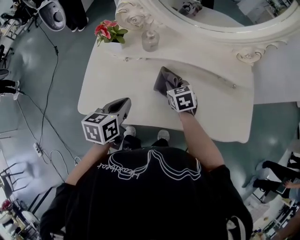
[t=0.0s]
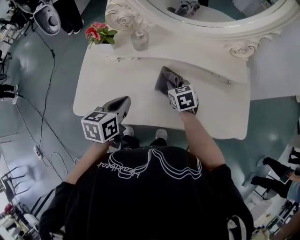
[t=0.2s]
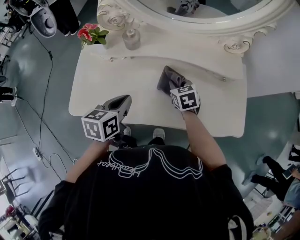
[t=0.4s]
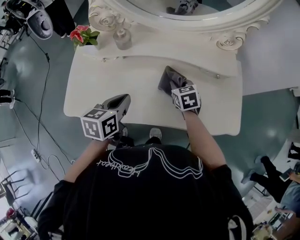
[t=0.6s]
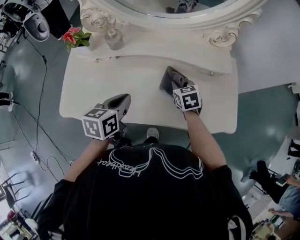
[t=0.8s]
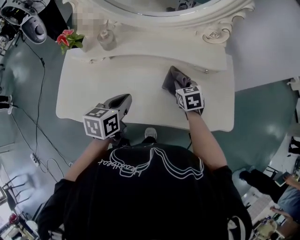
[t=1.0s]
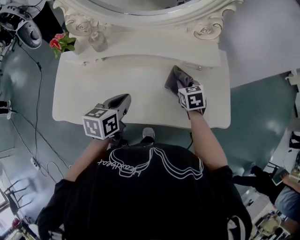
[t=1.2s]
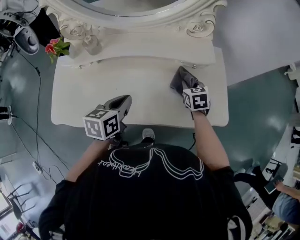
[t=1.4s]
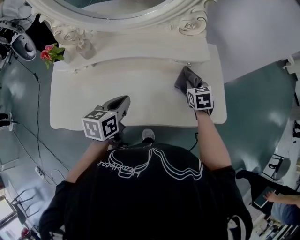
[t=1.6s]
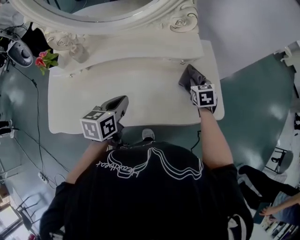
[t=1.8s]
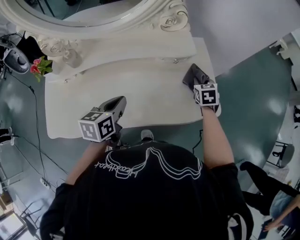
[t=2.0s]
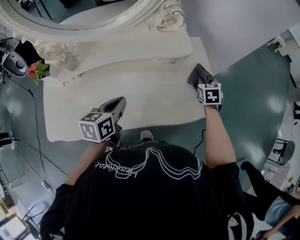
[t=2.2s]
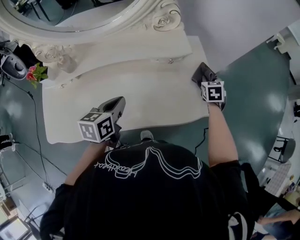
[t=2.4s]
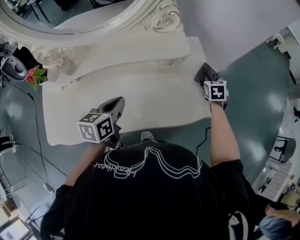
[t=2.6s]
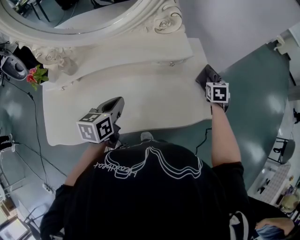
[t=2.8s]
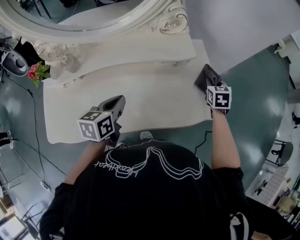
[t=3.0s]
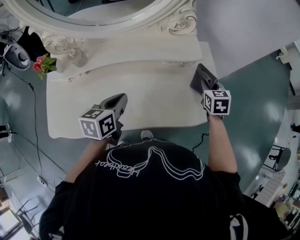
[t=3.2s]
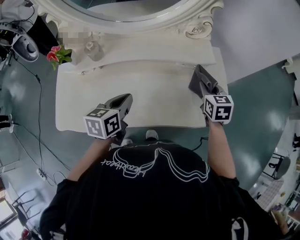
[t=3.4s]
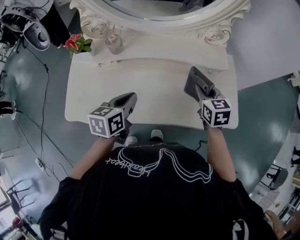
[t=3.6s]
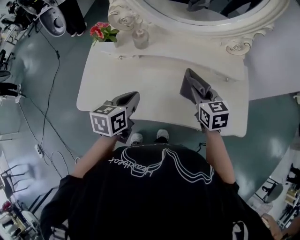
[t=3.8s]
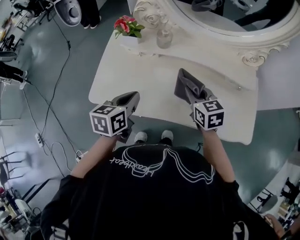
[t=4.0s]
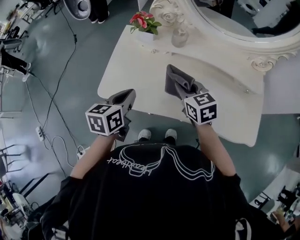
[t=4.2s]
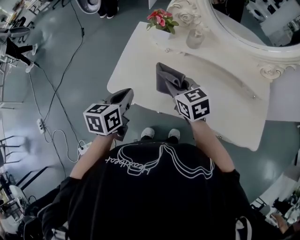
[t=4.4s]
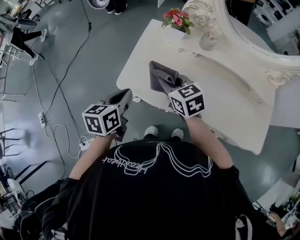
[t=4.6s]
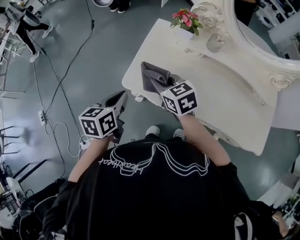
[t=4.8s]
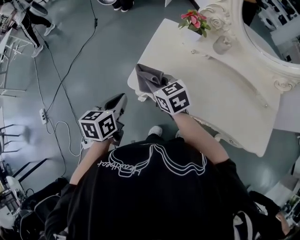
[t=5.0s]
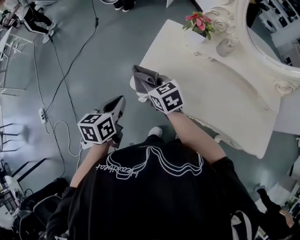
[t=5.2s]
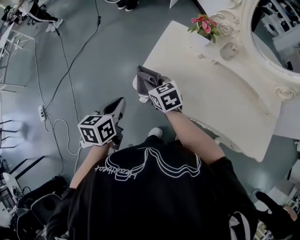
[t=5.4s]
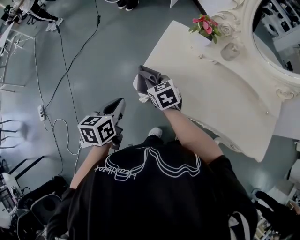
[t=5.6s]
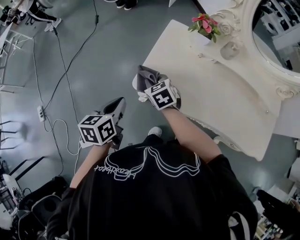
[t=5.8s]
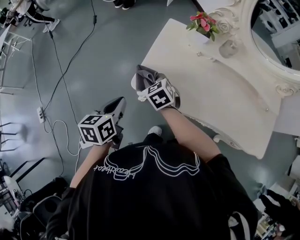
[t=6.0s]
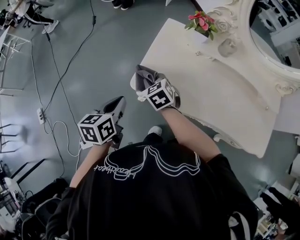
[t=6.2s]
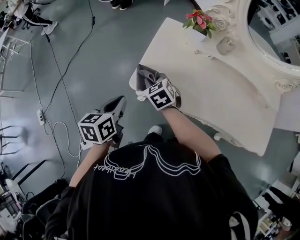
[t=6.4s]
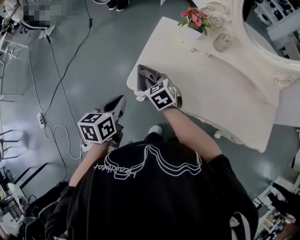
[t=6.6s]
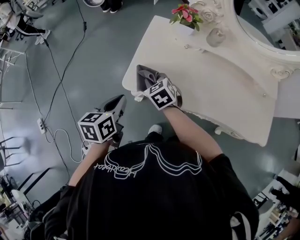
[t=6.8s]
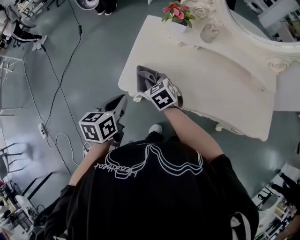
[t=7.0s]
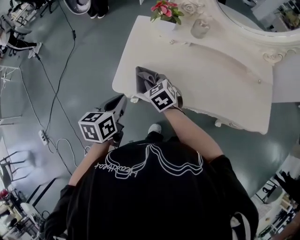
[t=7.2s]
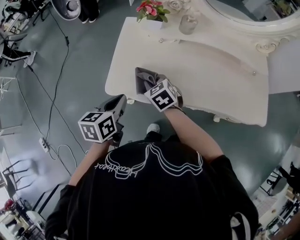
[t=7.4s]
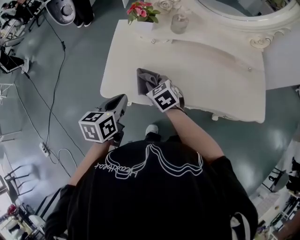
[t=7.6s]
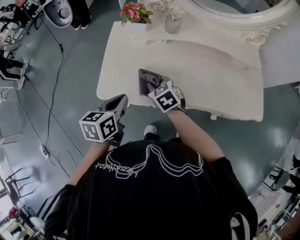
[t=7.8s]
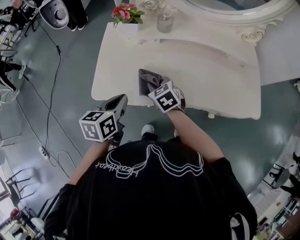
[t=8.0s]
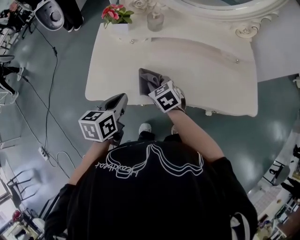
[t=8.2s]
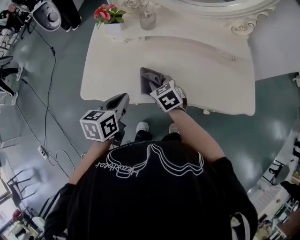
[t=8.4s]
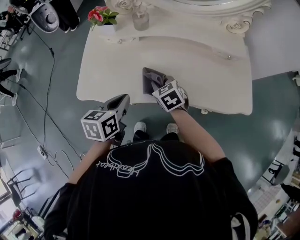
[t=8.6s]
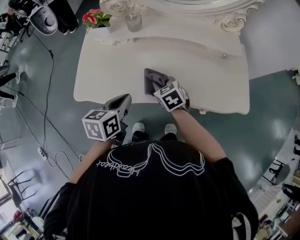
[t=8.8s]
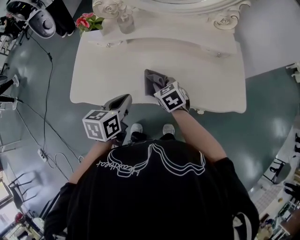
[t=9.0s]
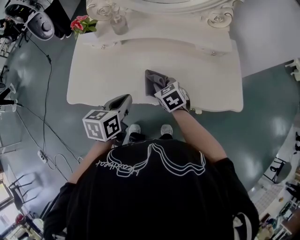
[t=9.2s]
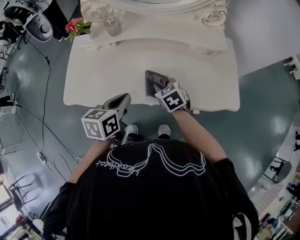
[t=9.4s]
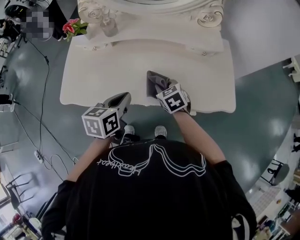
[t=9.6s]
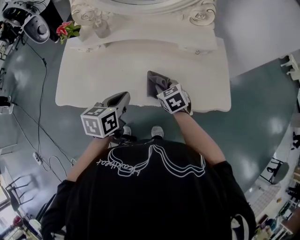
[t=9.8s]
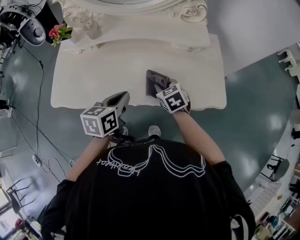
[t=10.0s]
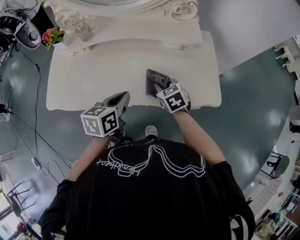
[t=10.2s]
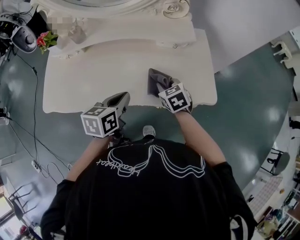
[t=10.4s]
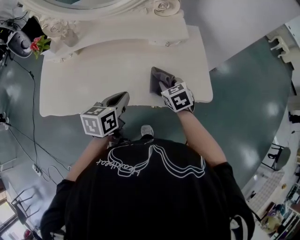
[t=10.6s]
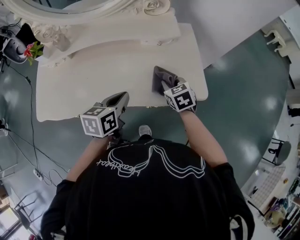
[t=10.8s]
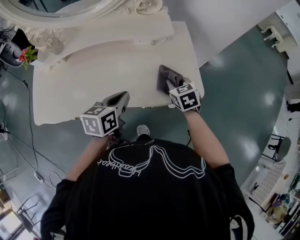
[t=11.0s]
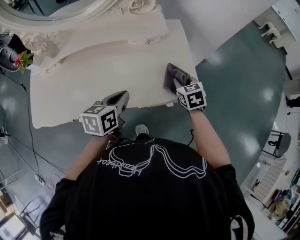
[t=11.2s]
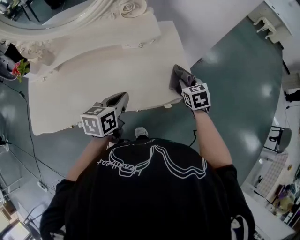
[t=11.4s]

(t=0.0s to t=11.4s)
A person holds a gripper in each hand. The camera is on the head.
t=0.0s - t=1.4s: The right gripper is displaced to the right by some 30 cm, while the left gripper heads to the right, covering about 20 cm.
t=1.4s - t=2.8s: The right gripper moves to the right, roughly 20 cm, and swivels approximately 20 degrees. Meanwhile the left gripper changes place by about 5 cm.
t=2.8s - t=4.2s: The left gripper changes place by some 35 cm, and changes its angle by about 30 degrees, while the right gripper changes place by roughly 60 cm, and turns by some 60 degrees.
t=4.2s - t=5.6s: Both grippers travel together to the left, about 25 cm.
t=5.6s - t=7.2s: Both grippers move to the right, about 10 cm.
t=7.2s - t=8.6s: The two grippers go approximately 20 cm to the right.
t=8.6s - t=10.0s: The grippers both shift to the right by about 20 cm.
t=10.0s - t=11.4s: The left gripper is displaced to the right by some 15 cm; the right gripper travels to the right by some 30 cm, and rotates some 30 degrees.

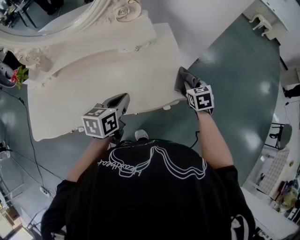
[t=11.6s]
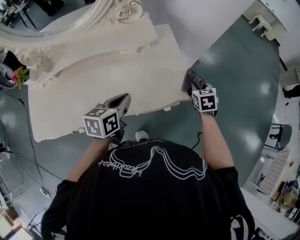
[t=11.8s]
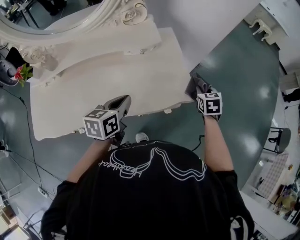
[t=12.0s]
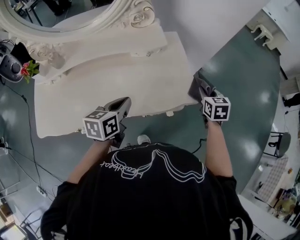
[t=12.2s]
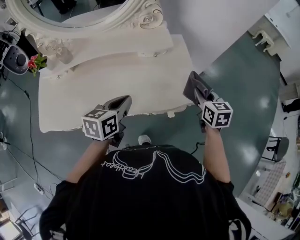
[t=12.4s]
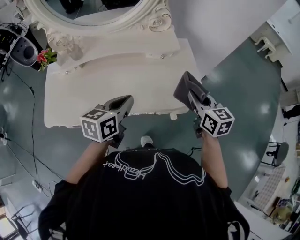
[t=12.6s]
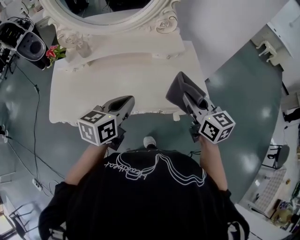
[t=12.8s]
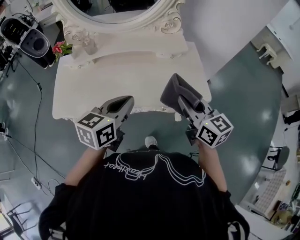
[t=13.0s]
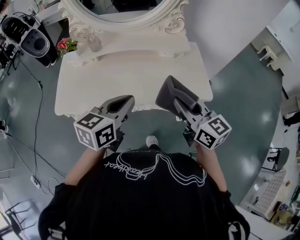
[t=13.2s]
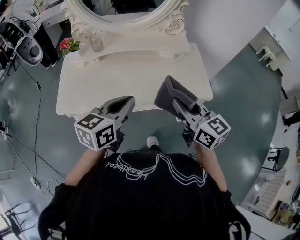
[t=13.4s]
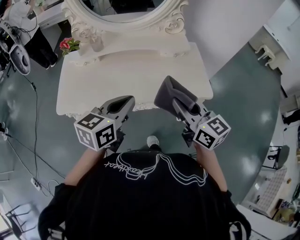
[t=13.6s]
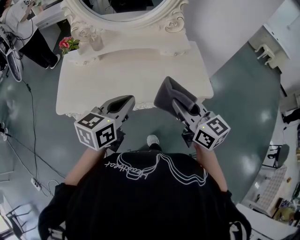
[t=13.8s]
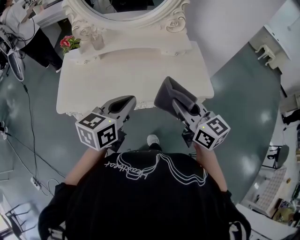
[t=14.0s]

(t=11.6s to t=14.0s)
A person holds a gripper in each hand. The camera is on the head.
t=11.6s - t=12.8s: The right gripper is displaced upward, to the left and backward by roughly 30 cm, and angles its fingers upward, by about 30 degrees. Meanwhile the left gripper travels upward, backward and to the left by about 20 cm.
t=12.8s - t=14.0s: The left gripper shifts some 10 cm backward and to the left, while the right gripper moves to the left and backward, roughly 15 cm.

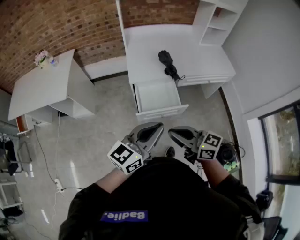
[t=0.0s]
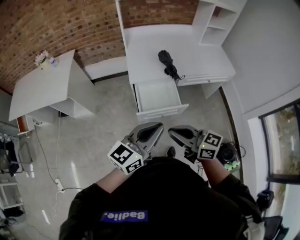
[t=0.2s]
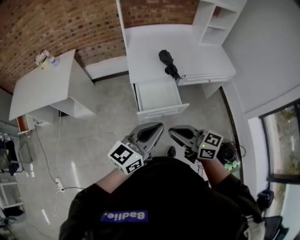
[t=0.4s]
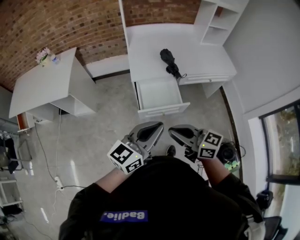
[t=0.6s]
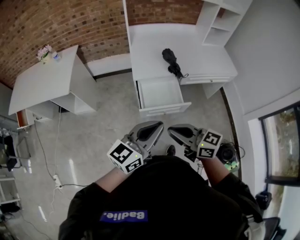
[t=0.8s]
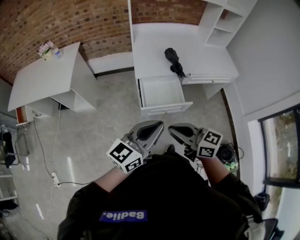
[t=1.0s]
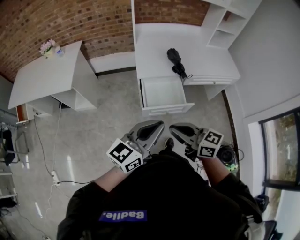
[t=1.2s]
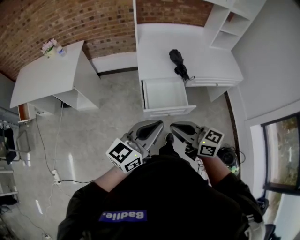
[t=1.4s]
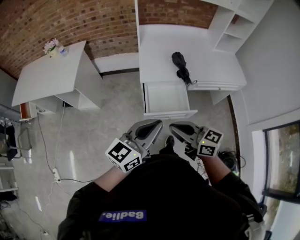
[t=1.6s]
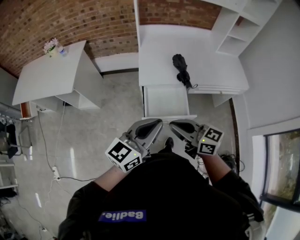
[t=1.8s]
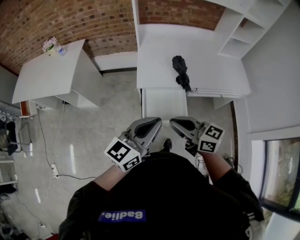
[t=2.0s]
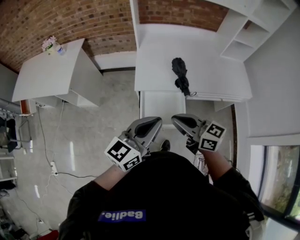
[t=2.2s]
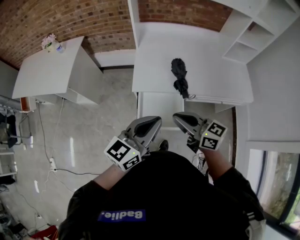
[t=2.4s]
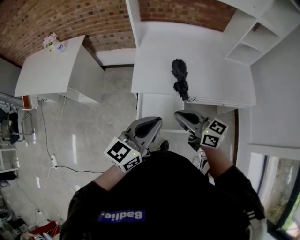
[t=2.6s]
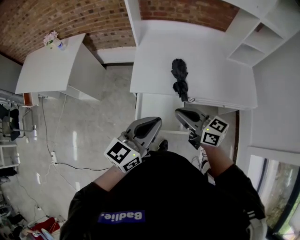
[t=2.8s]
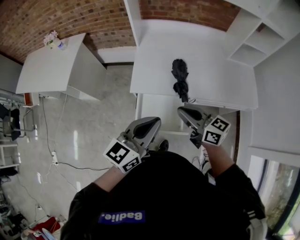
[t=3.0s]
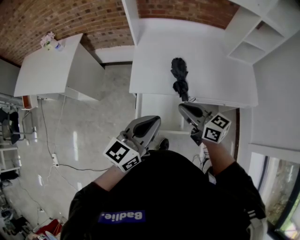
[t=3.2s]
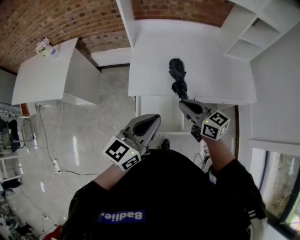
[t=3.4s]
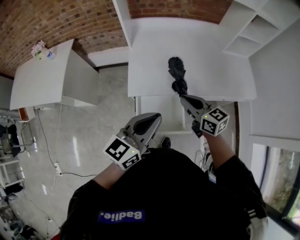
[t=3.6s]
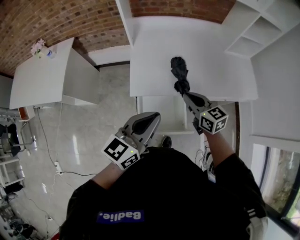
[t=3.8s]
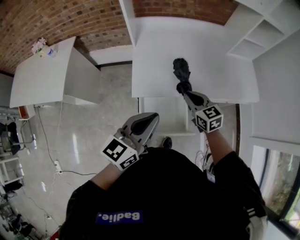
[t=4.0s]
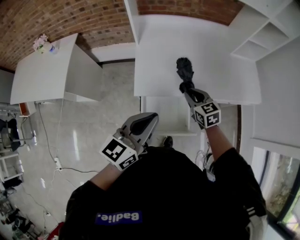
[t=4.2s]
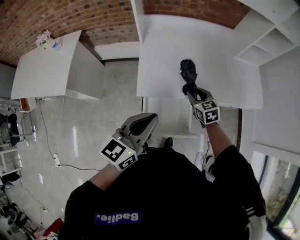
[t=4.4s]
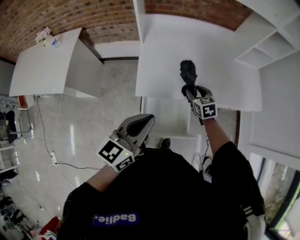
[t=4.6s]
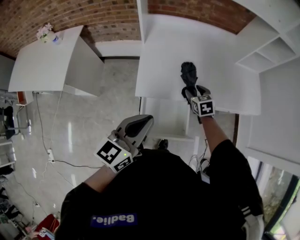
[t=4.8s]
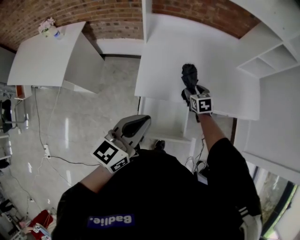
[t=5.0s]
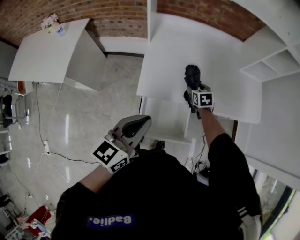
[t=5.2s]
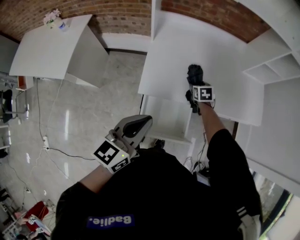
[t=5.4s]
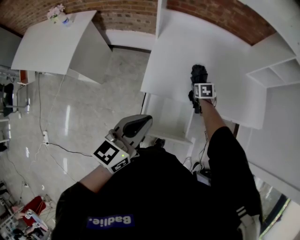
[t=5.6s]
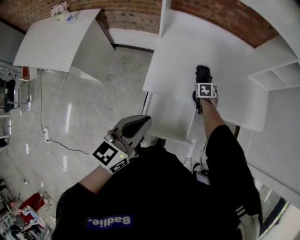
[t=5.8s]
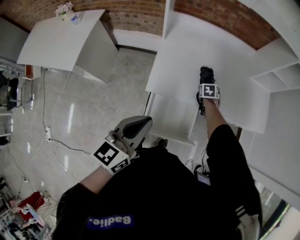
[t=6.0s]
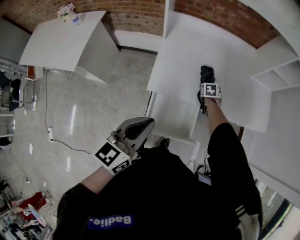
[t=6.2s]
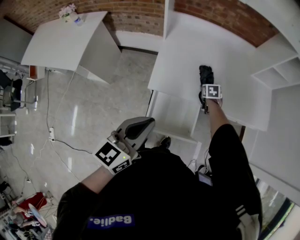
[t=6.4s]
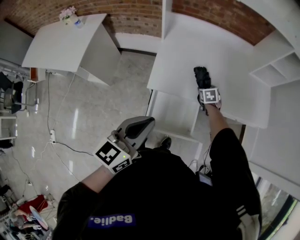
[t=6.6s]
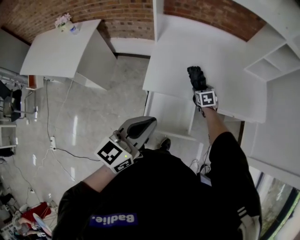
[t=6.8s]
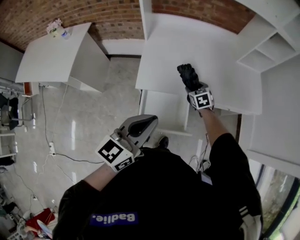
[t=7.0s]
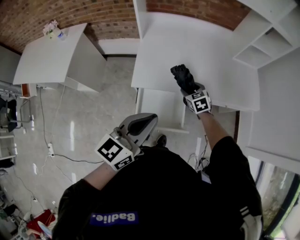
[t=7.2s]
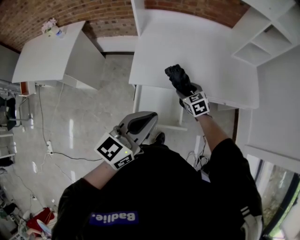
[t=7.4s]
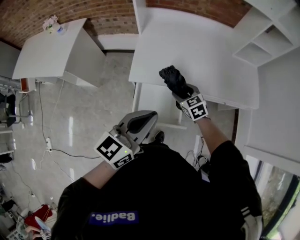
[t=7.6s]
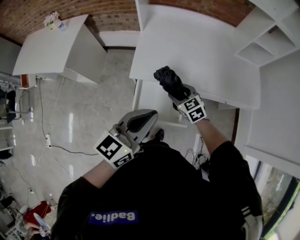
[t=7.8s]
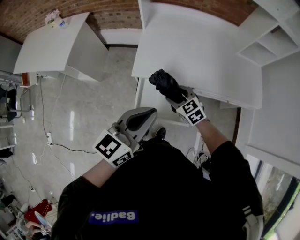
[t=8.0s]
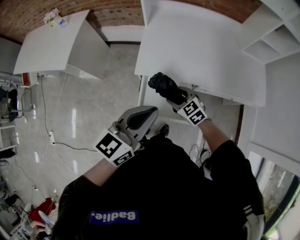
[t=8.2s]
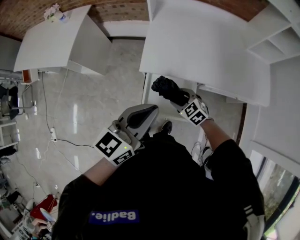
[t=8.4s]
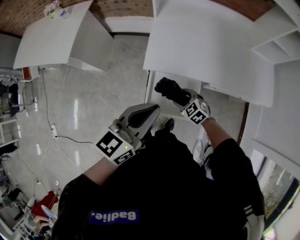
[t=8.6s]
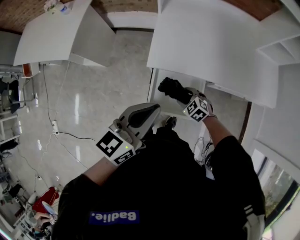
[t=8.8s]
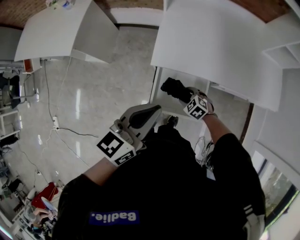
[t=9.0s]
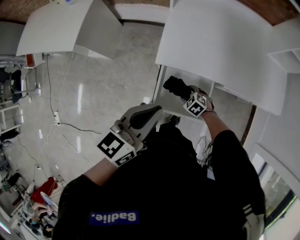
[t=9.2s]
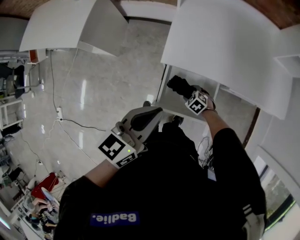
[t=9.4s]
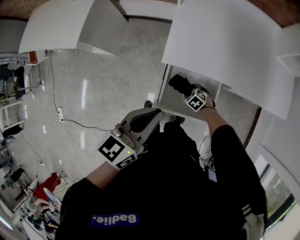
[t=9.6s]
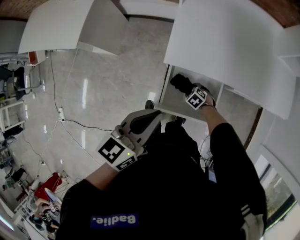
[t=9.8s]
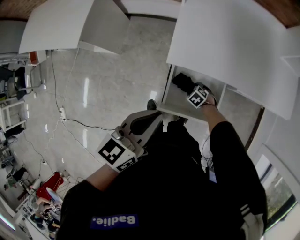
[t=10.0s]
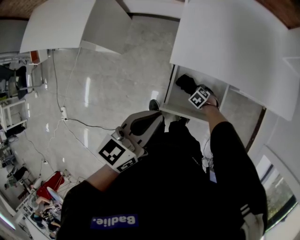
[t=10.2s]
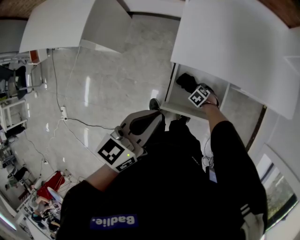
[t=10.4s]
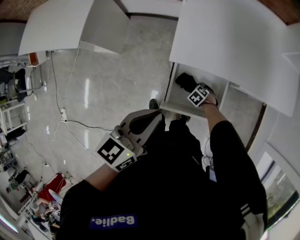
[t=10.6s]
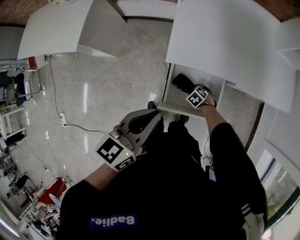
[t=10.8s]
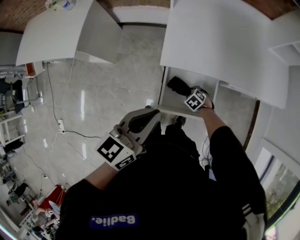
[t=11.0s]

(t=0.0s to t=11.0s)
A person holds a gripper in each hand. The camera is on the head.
t=0.0s - t=1.6s: The right gripper ends up some 5 cm from where it was.
t=1.6s - t=3.2s: The two grippers go about 25 cm forward and to the right.
t=3.2s - t=4.8s: The right gripper heads downward and forward, covering approximately 25 cm, angles its fingers downward, by some 40 degrees, and opens its fingers, while the left gripper heads to the left and forward, covering about 10 cm.
t=4.8s - t=6.2s: The right gripper moves downward and forward, roughly 15 cm, and turns by about 20 degrees.
t=6.2s - t=7.8s: The right gripper is displaced backward and upward by roughly 25 cm, and swivels approximately 40 degrees. Meanwhile the left gripper is displaced to the right by roughly 10 cm.
t=7.8s - t=9.4s: The left gripper moves to the left, downward and forward, approximately 15 cm. Meanwhile the right gripper travels downward by approximately 25 cm, and changes its angle by roughly 40 degrees.
t=9.4s - t=11.0s: The right gripper moves some 10 cm downward and comes back.
